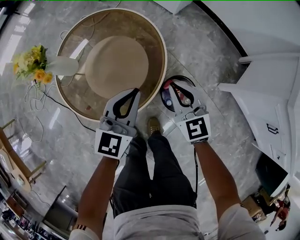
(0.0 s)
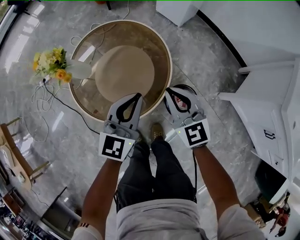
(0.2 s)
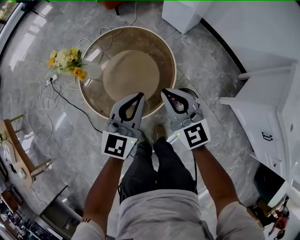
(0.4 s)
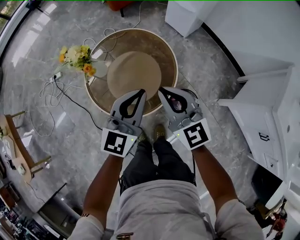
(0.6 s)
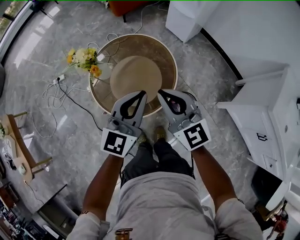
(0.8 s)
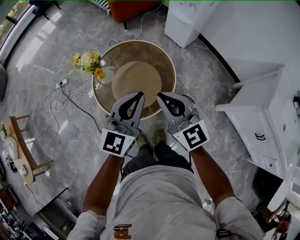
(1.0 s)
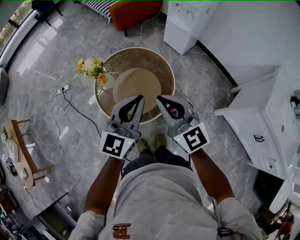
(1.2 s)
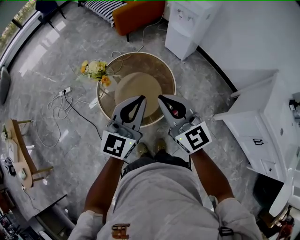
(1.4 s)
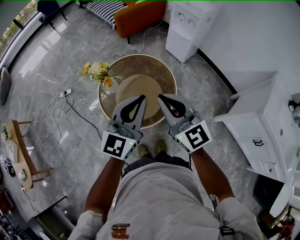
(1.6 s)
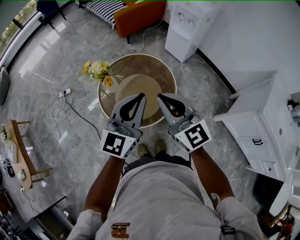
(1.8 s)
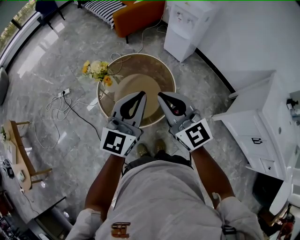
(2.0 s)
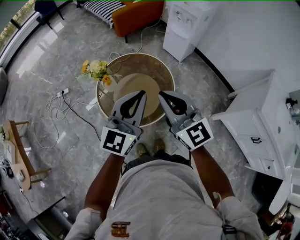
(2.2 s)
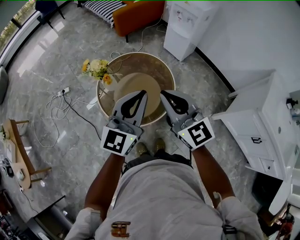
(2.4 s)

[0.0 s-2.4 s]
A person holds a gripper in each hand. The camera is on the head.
0.0 to 1.2 s: The right gripper shifts about 35 cm upward and to the left, and changes its angle by approximately 20 degrees. Meanwhile the left gripper heads upward, covering approximately 30 cm.
1.2 to 2.4 s: The grippers make only small movements.

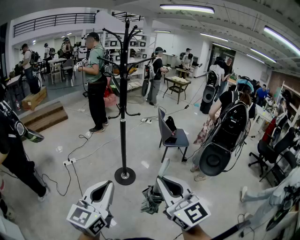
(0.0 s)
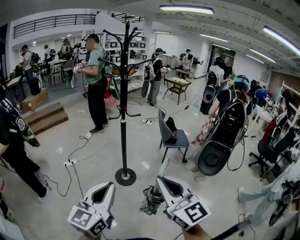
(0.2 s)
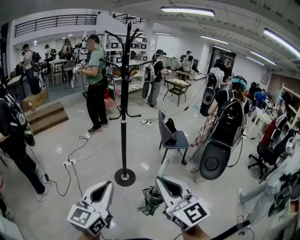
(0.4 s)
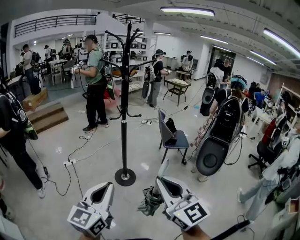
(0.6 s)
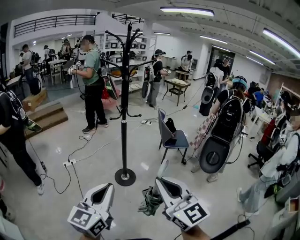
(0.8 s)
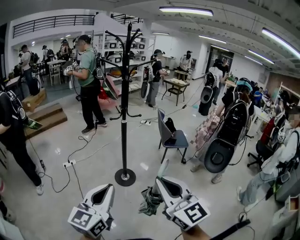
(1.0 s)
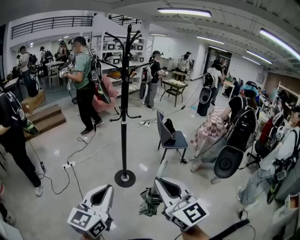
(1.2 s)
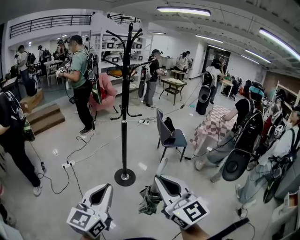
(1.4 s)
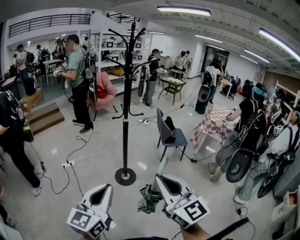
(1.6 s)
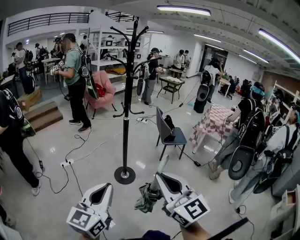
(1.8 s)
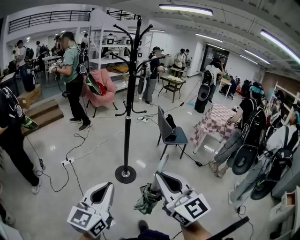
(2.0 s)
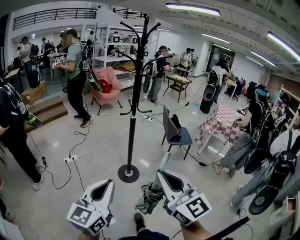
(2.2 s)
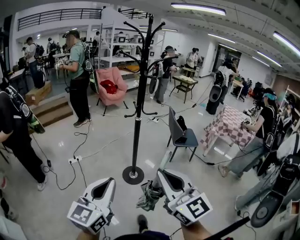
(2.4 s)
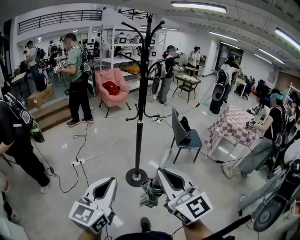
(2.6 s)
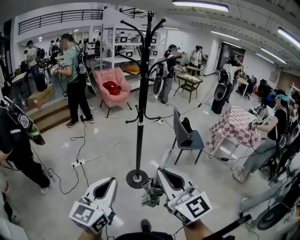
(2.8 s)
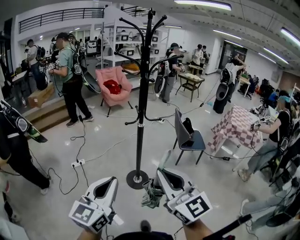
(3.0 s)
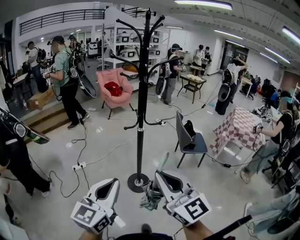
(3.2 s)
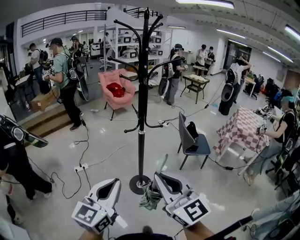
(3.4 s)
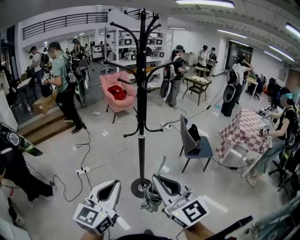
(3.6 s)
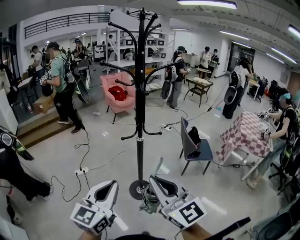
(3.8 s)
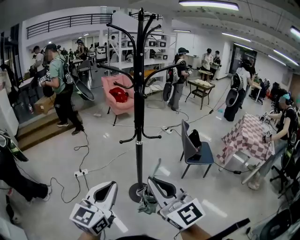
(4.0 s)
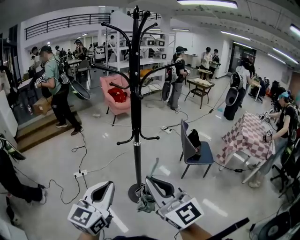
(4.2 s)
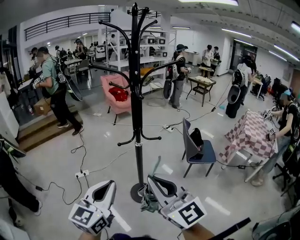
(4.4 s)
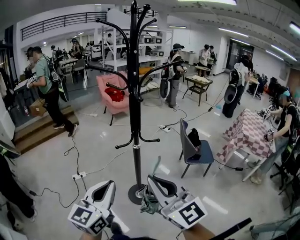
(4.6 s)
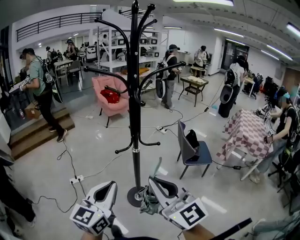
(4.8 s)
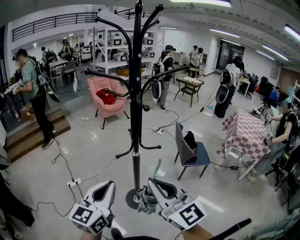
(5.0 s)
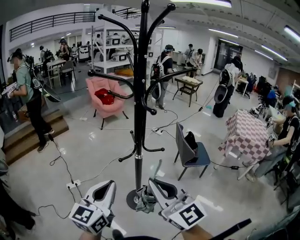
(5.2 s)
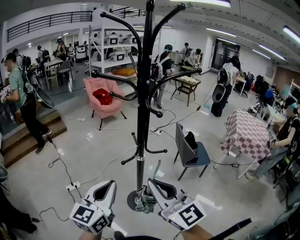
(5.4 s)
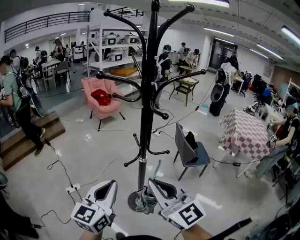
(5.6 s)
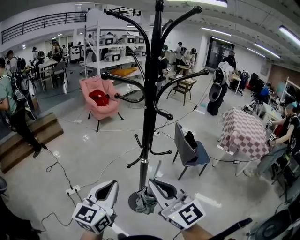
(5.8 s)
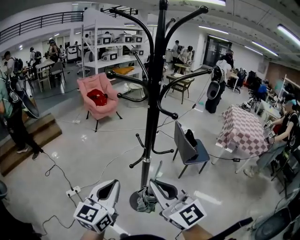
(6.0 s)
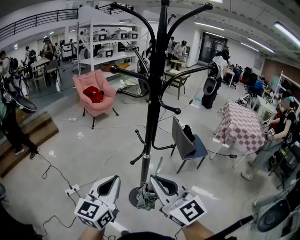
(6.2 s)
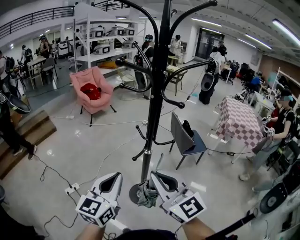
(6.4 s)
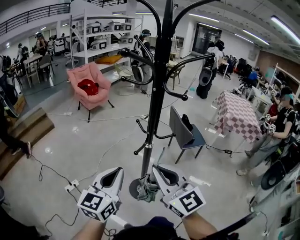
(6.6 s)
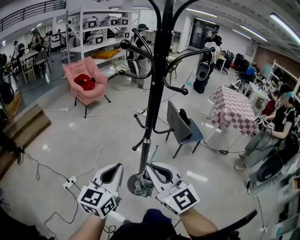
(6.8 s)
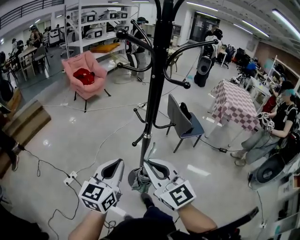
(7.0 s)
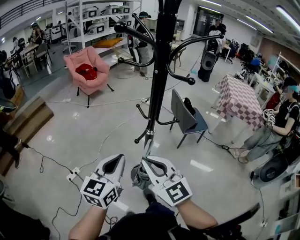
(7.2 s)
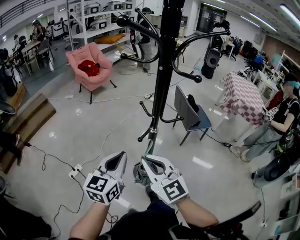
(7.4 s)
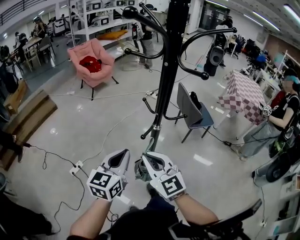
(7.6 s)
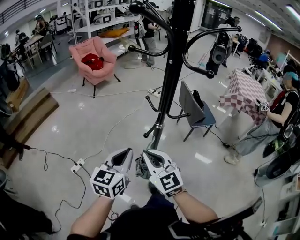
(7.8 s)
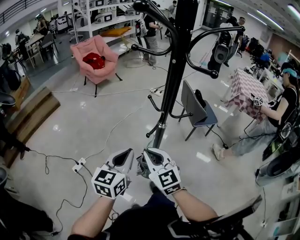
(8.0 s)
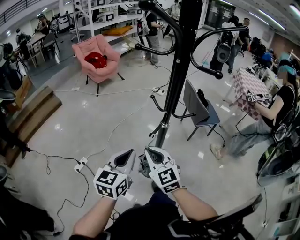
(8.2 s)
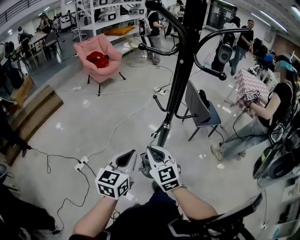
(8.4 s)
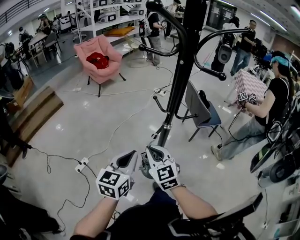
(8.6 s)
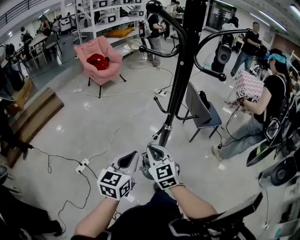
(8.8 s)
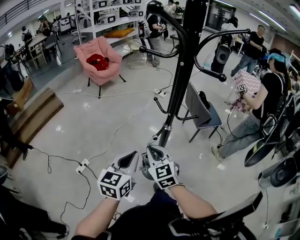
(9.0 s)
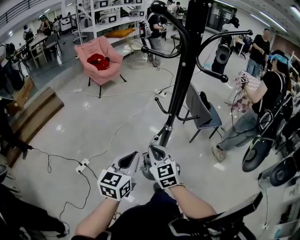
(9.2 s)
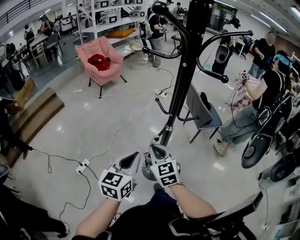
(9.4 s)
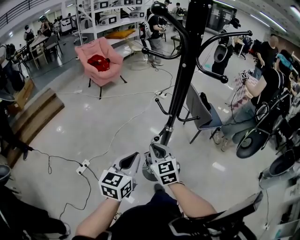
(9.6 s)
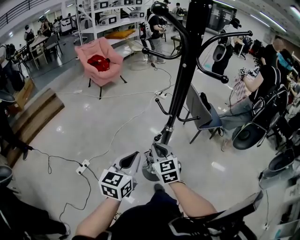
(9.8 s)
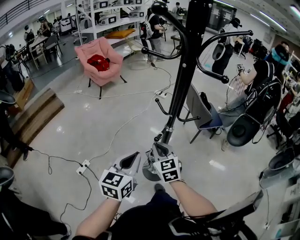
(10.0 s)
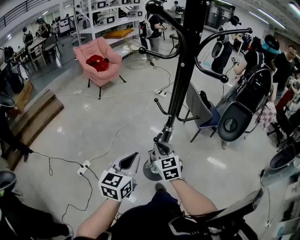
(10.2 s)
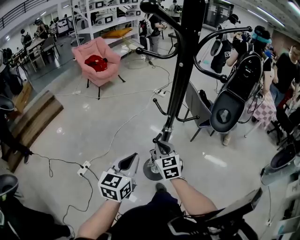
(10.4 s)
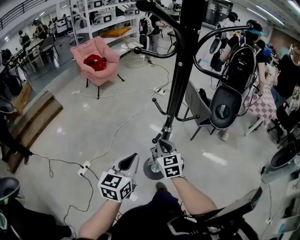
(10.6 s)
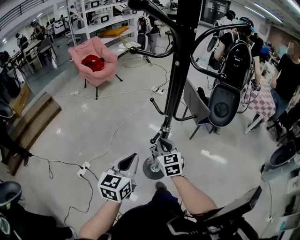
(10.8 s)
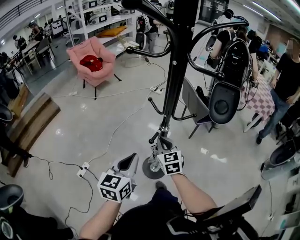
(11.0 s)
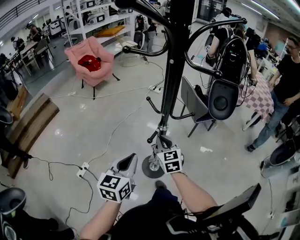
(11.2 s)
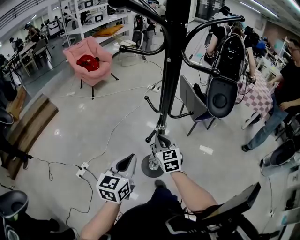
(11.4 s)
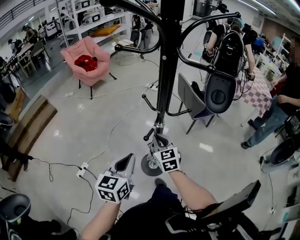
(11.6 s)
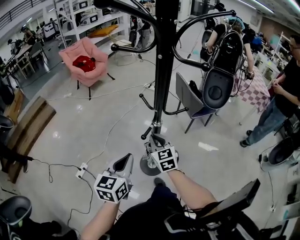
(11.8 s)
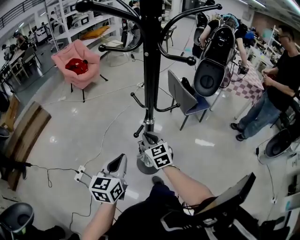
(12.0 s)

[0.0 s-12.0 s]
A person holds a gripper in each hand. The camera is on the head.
0.0 to 1.6 s: Both grippers travel together to the left, about 5 cm.
1.6 to 3.0 s: Both grippers travel together forward, approximately 15 cm.
3.0 to 4.4 s: Both grippers move forward and to the right, roughly 15 cm.
4.4 to 6.0 s: The grippers both shift forward and to the left by some 20 cm.
6.0 to 7.6 s: The right gripper moves downward, to the left and forward, some 20 cm. Meanwhile the left gripper goes about 15 cm downward and forward.
7.6 to 9.0 s: The right gripper heads forward and downward, covering approximately 10 cm.
9.0 to 10.4 s: The right gripper shifts by some 5 cm.
10.4 to 12.0 s: The grippers move only a little.

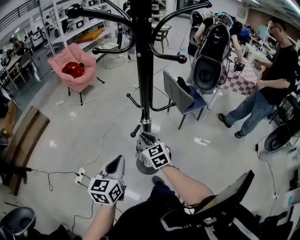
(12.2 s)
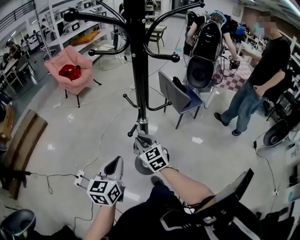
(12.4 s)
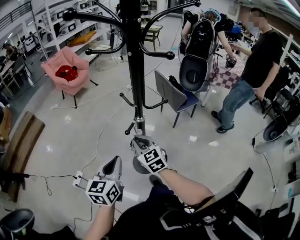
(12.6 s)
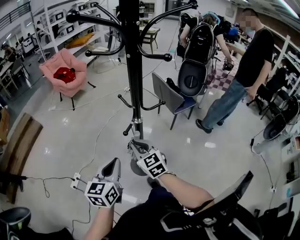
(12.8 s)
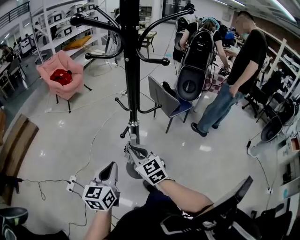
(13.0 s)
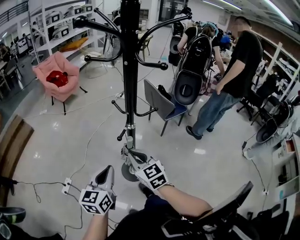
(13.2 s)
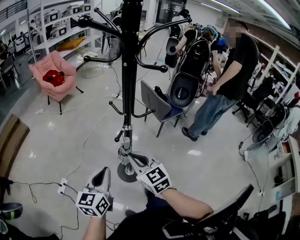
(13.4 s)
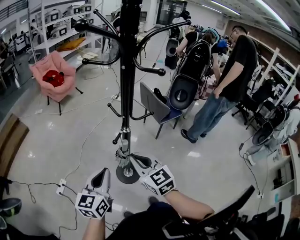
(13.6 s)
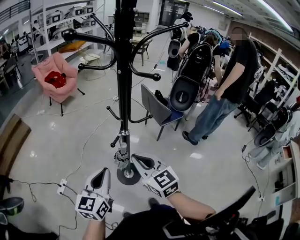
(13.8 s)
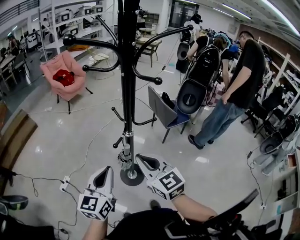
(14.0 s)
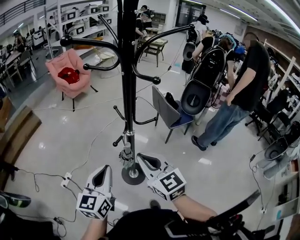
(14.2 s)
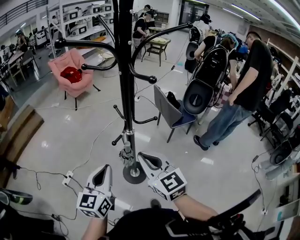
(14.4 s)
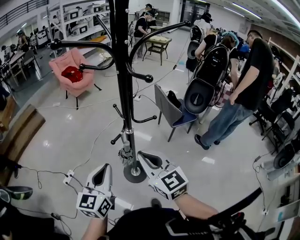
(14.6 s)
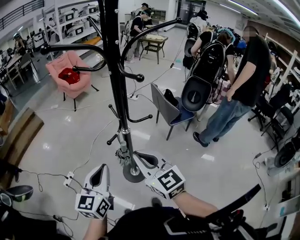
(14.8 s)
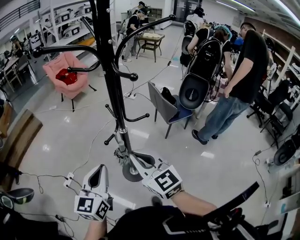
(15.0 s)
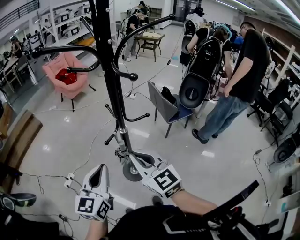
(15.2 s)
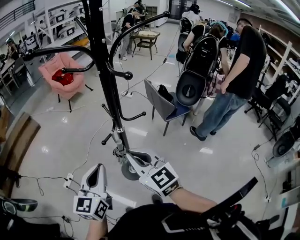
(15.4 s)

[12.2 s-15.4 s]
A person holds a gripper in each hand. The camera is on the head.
12.2 to 13.8 s: The right gripper travels upward and backward by approximately 20 cm. Meanwhile the left gripper ends up some 5 cm from where it was.
13.8 to 15.4 s: The left gripper moves about 5 cm, while the right gripper shifts by some 5 cm.

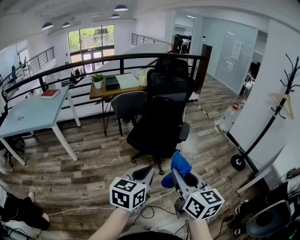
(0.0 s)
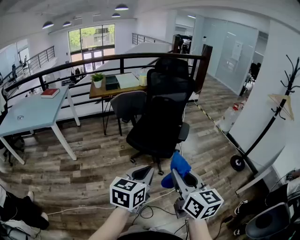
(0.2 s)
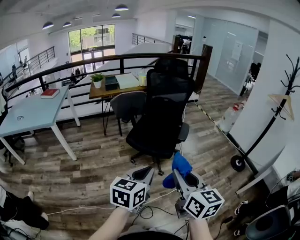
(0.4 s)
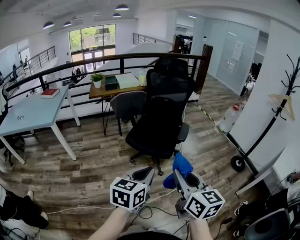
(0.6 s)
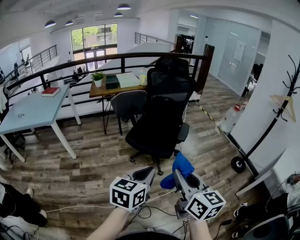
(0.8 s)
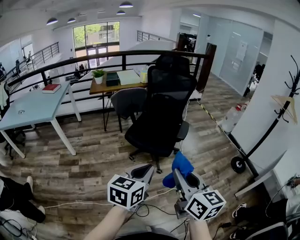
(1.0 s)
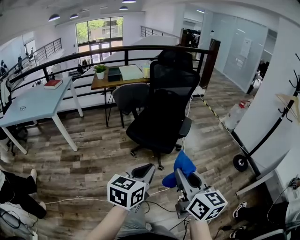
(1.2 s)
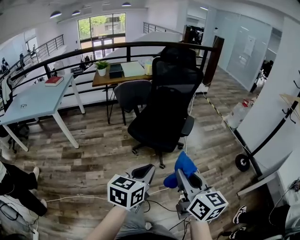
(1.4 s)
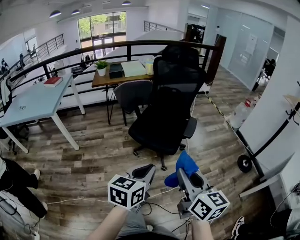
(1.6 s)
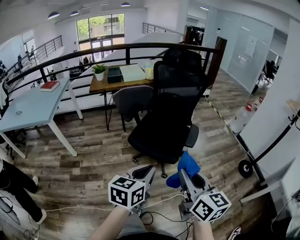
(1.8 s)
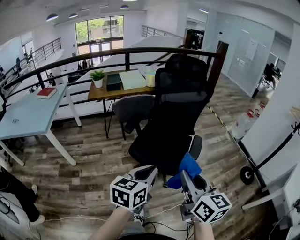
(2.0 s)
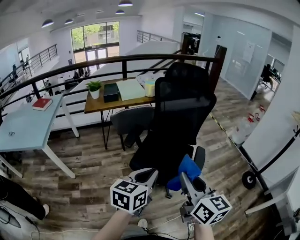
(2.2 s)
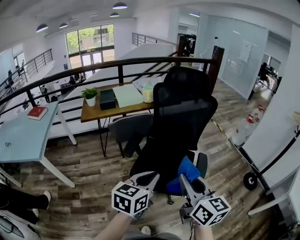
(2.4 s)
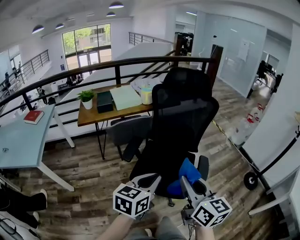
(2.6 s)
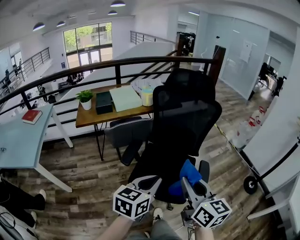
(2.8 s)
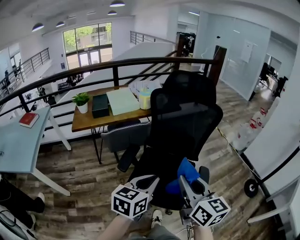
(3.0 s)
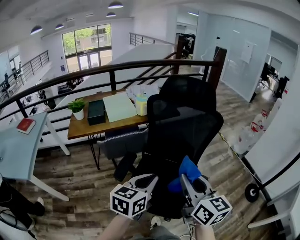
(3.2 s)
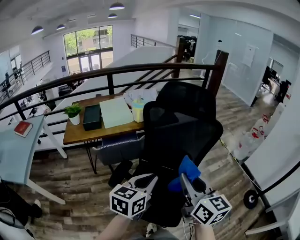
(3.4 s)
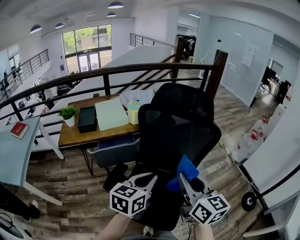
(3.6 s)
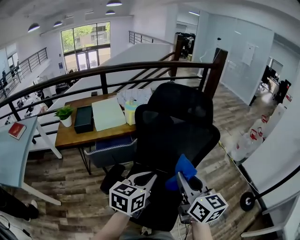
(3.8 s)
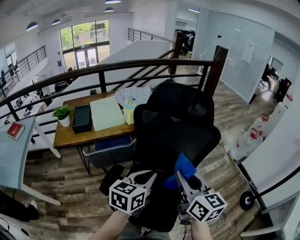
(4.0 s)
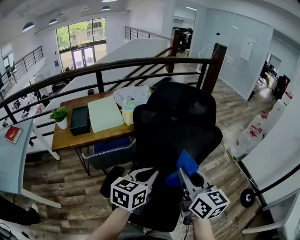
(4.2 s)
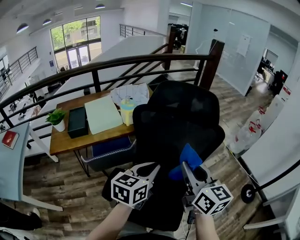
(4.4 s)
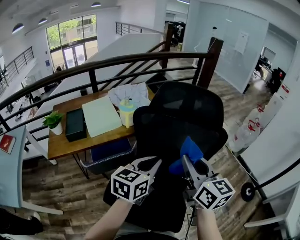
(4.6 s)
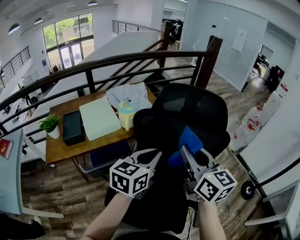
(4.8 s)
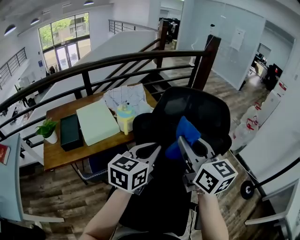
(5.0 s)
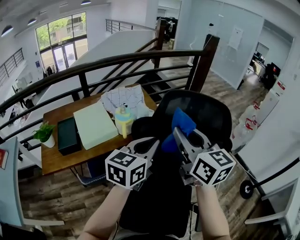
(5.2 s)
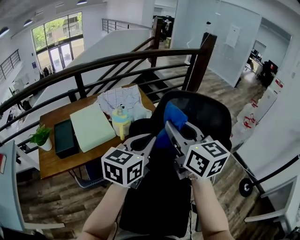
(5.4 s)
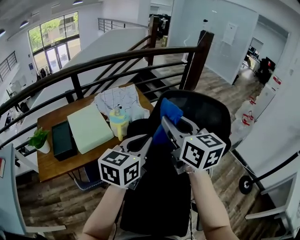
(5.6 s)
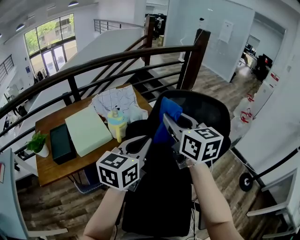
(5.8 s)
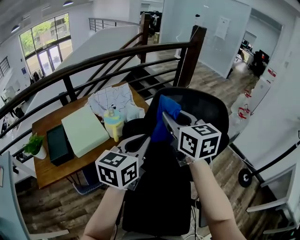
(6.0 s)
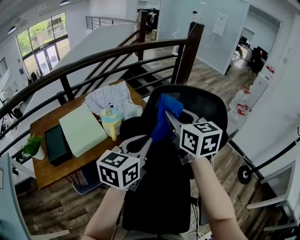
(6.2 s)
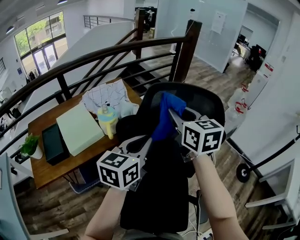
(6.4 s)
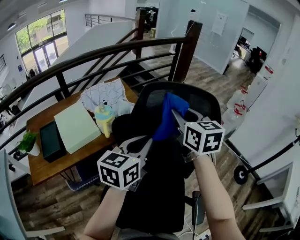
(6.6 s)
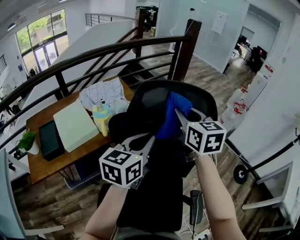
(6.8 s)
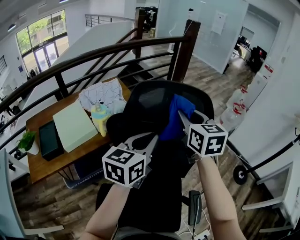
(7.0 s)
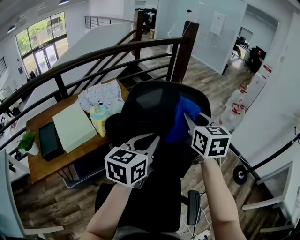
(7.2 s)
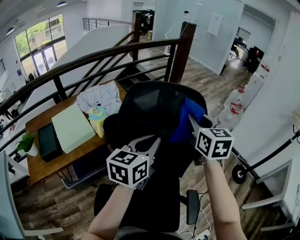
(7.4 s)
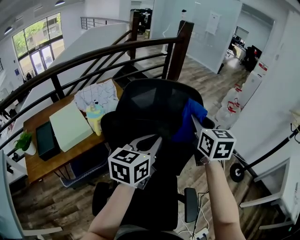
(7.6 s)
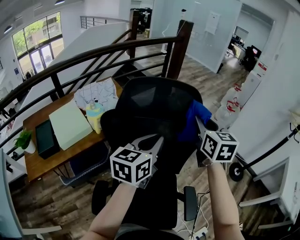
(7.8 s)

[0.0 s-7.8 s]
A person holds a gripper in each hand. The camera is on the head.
0.0 to 1.6 s: Both grippers move forward, about 5 cm.
1.6 to 3.2 s: Both grippers are carried forward, roughly 50 cm.
3.2 to 4.6 s: The two grippers go roughly 25 cm forward.
4.6 to 6.2 s: The right gripper goes approximately 20 cm forward; the left gripper heads forward, covering some 15 cm.
6.2 to 7.8 s: The right gripper heads to the right, covering some 20 cm, and changes its angle by approximately 20 degrees. The left gripper travels to the right by some 15 cm.
